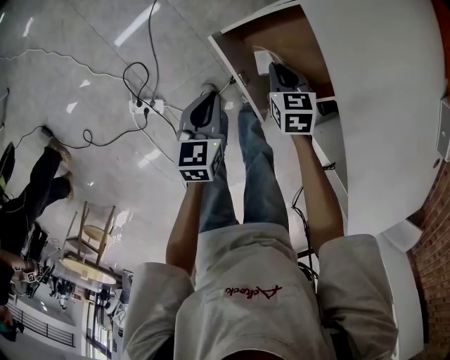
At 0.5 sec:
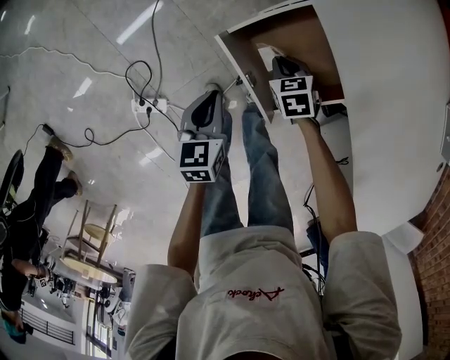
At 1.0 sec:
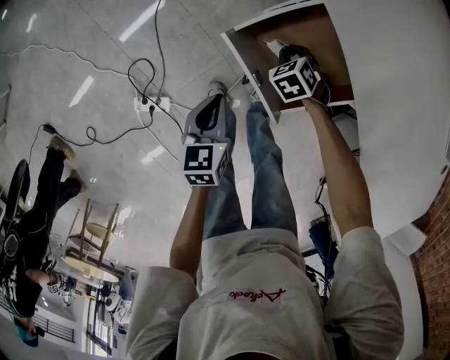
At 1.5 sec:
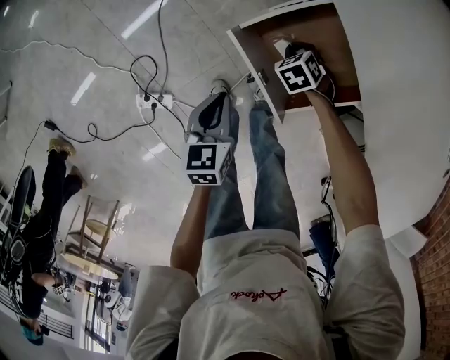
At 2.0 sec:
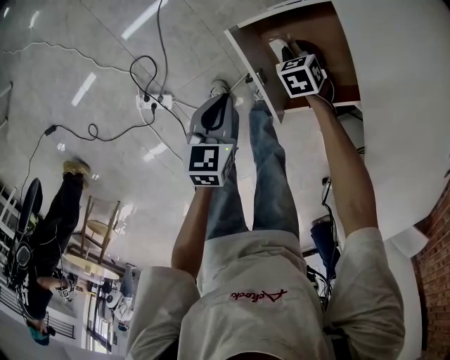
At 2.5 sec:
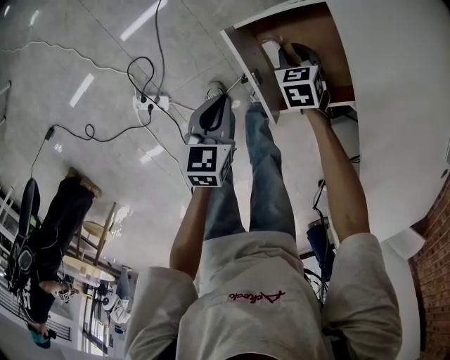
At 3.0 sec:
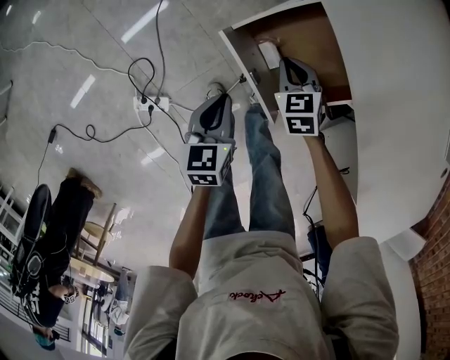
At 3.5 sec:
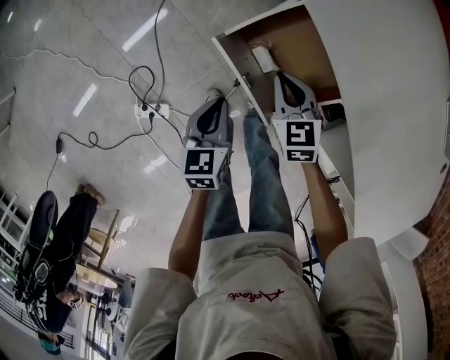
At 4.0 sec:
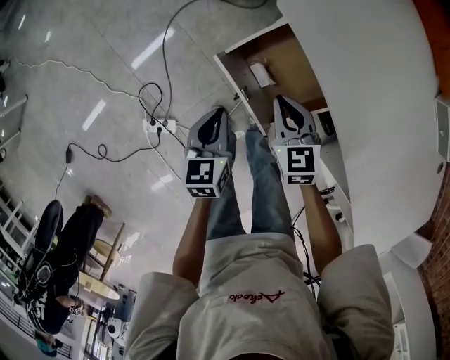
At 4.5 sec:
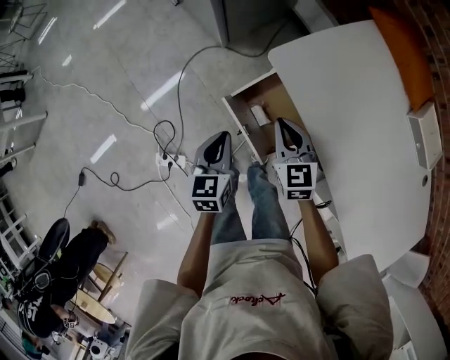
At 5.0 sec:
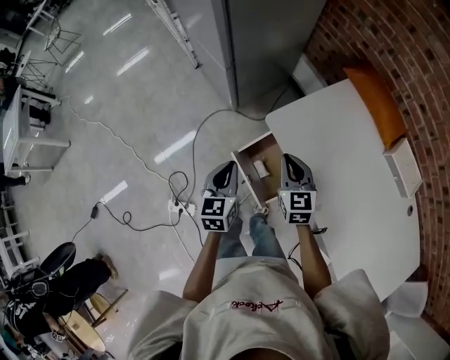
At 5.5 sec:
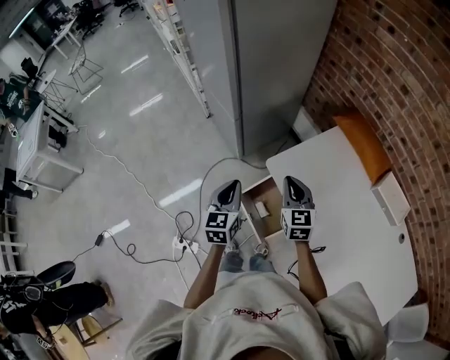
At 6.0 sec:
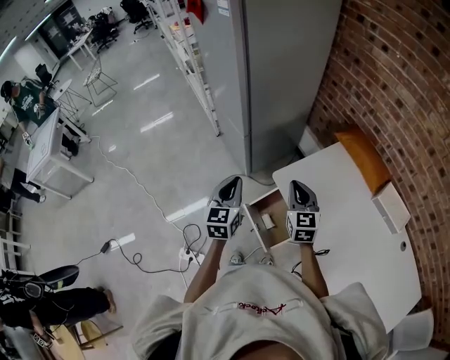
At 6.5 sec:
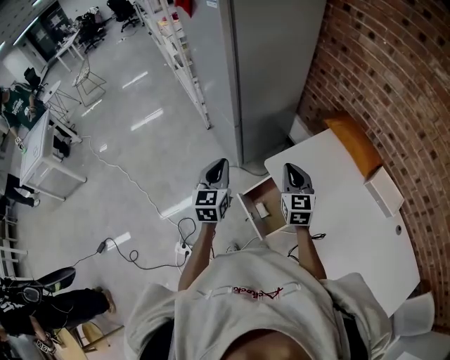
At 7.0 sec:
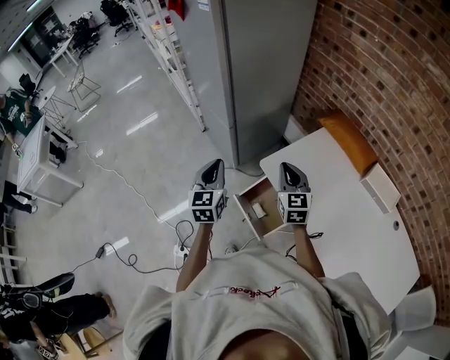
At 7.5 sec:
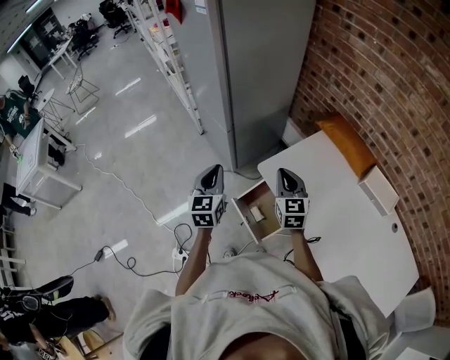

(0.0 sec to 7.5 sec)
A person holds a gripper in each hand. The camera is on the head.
0.0 sec - 2.0 sec: The right gripper is displaced downward by about 10 cm, changes its angle by approximately 30 degrees, and opens its fingers.
2.0 sec - 4.0 sec: The left gripper travels upward by approximately 10 cm. The right gripper goes about 20 cm upward, tilts its fingers roughly 30 degrees upward, and closes.
4.0 sec - 5.5 sec: The grippers both shift upward by some 30 cm. The right gripper rotates about 20 degrees. The left gripper turns by roughly 20 degrees.
5.5 sec - 7.5 sec: The two grippers go approximately 5 cm upward.

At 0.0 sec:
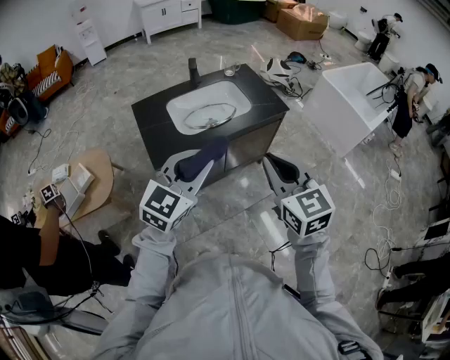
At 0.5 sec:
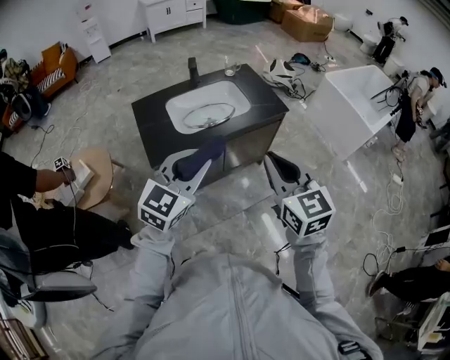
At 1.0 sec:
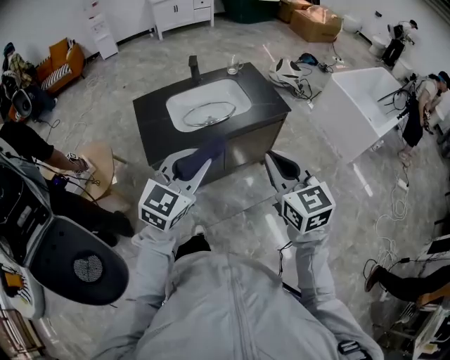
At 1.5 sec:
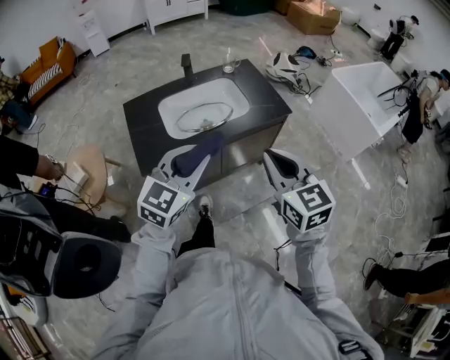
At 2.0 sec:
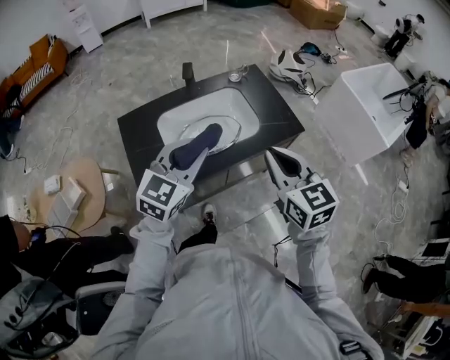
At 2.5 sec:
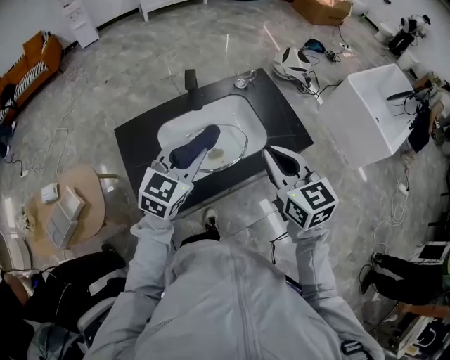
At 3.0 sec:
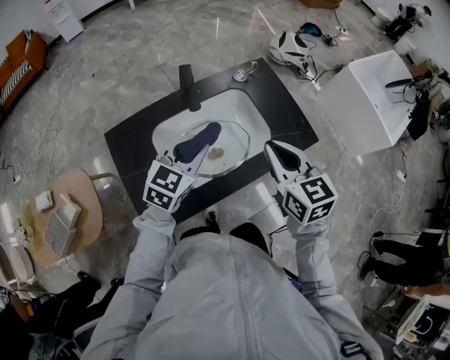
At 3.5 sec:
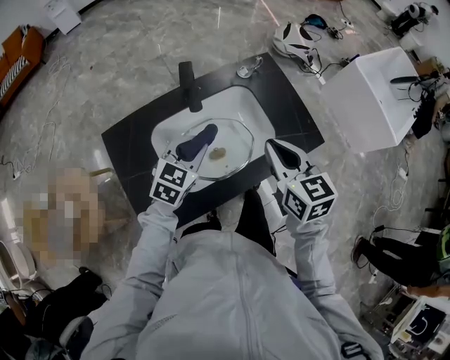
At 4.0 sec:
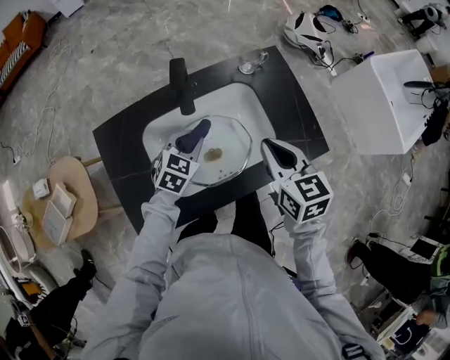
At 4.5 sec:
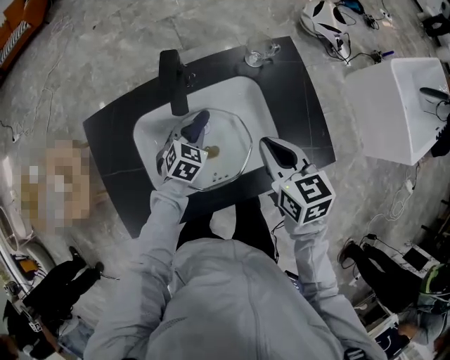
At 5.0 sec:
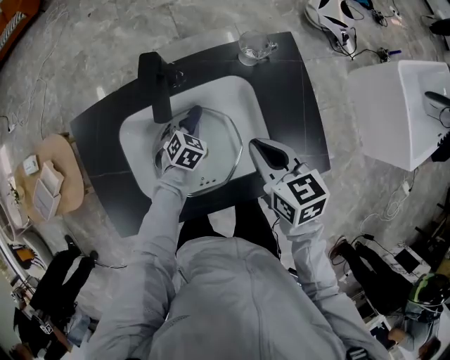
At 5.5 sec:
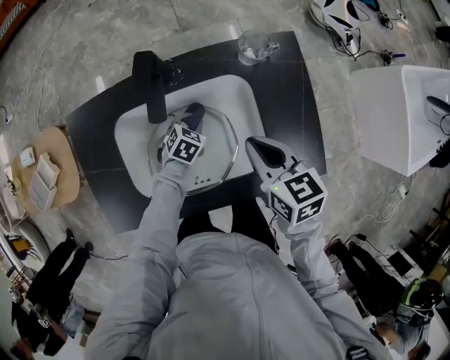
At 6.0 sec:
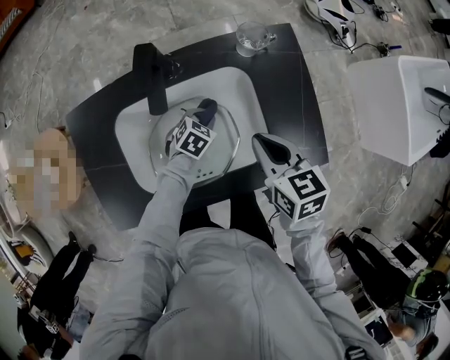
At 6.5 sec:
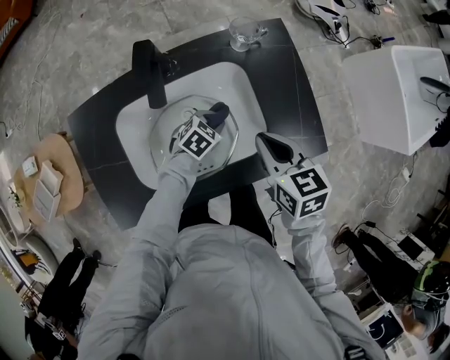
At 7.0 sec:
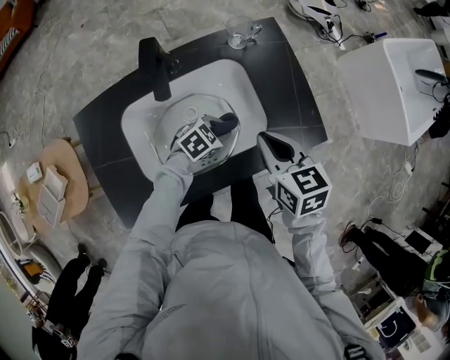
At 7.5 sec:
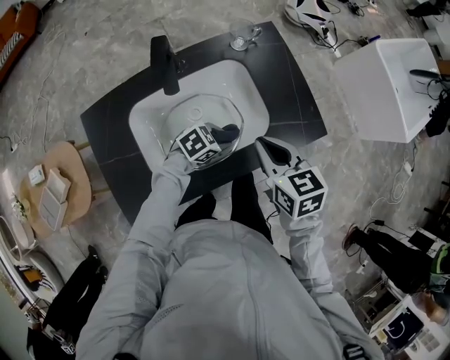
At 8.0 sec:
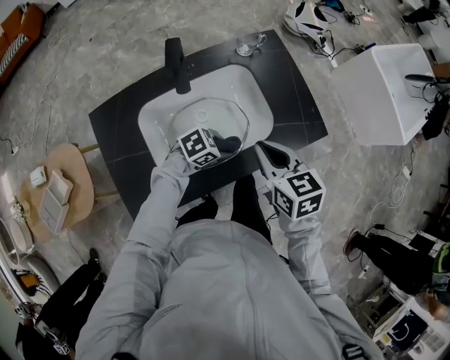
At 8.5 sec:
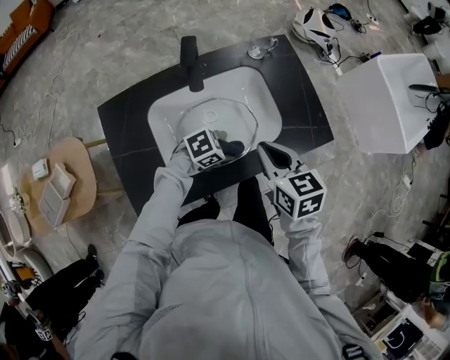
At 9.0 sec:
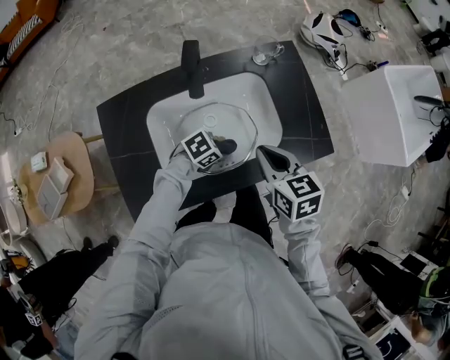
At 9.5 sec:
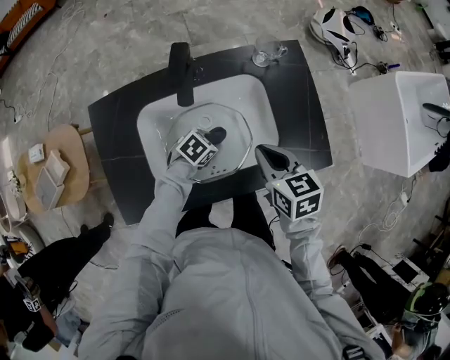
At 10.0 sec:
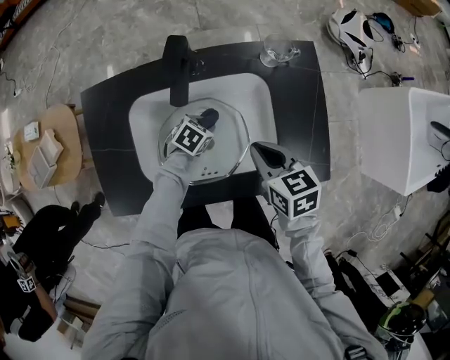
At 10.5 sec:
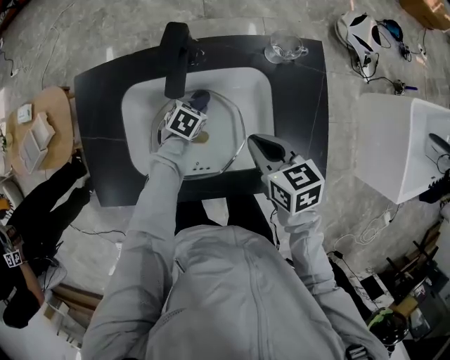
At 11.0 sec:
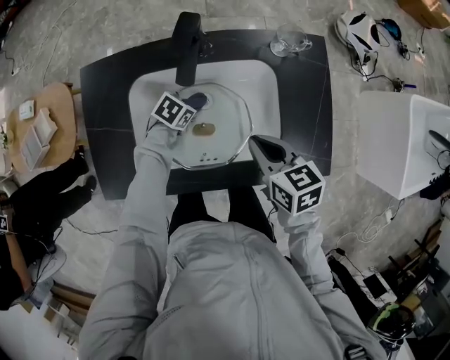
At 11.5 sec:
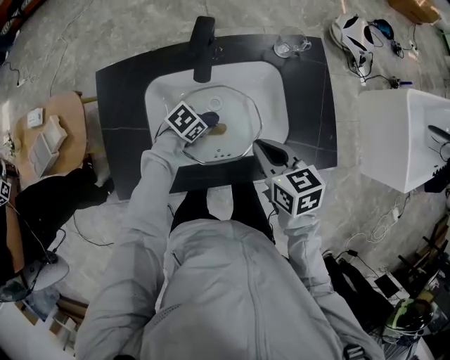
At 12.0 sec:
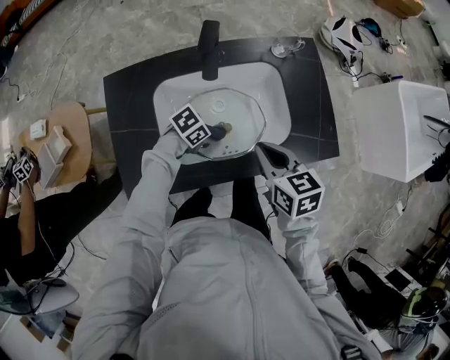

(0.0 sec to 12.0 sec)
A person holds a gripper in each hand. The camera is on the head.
0.0 sec - 2.0 sec: The two grippers go roughly 25 cm forward.
2.0 sec - 4.0 sec: The left gripper shifts approximately 35 cm downward and forward, and changes its angle by some 30 degrees. Meanwhile the right gripper moves forward and downward, about 25 cm.
4.0 sec - 6.0 sec: The left gripper is displaced downward and to the right by roughly 20 cm; the right gripper is displaced downward by some 10 cm.
6.0 sec - 8.0 sec: The left gripper moves roughly 20 cm, and turns by some 40 degrees. Meanwhile the right gripper moves some 10 cm.
8.0 sec - 10.0 sec: The right gripper moves about 10 cm, and rotates some 20 degrees, while the left gripper moves roughly 20 cm, and rotates about 50 degrees.
10.0 sec - 12.0 sec: The right gripper shifts by some 10 cm. Meanwhile the left gripper changes place by about 15 cm, and rotates approximately 30 degrees.

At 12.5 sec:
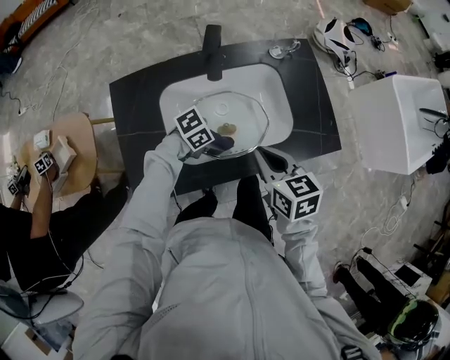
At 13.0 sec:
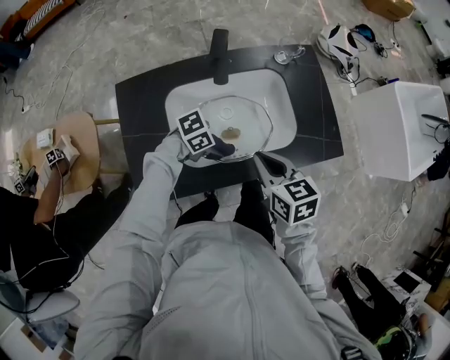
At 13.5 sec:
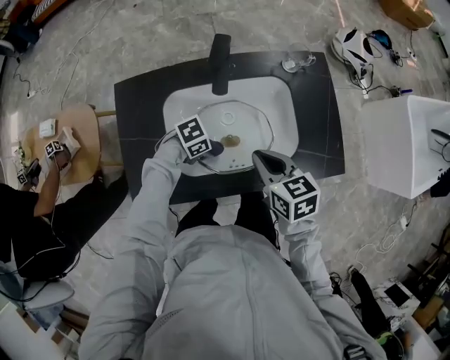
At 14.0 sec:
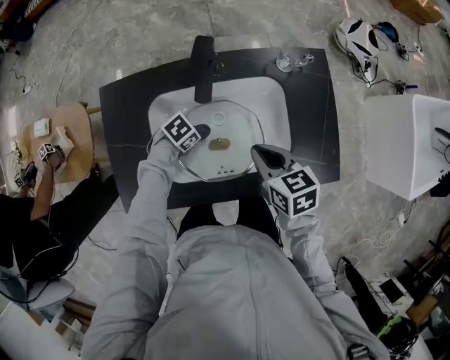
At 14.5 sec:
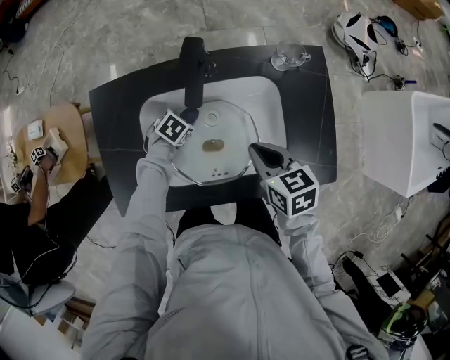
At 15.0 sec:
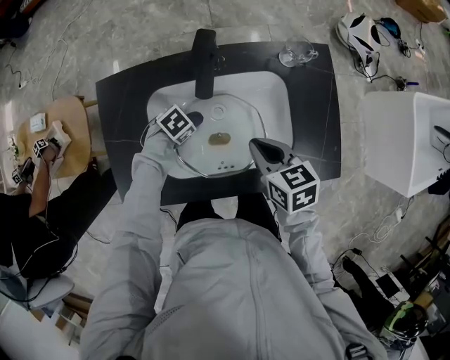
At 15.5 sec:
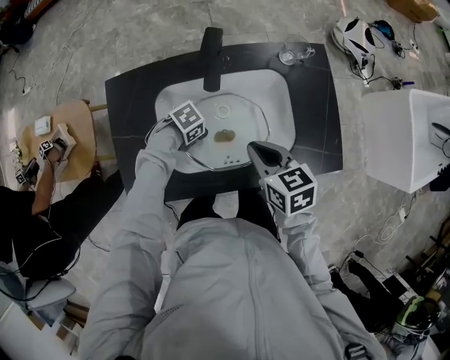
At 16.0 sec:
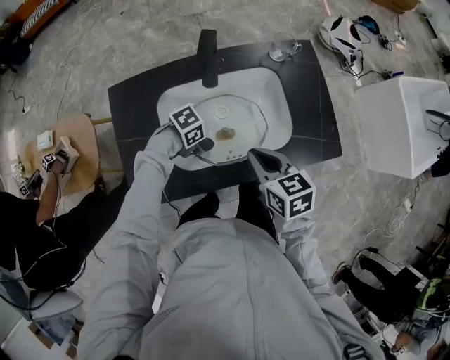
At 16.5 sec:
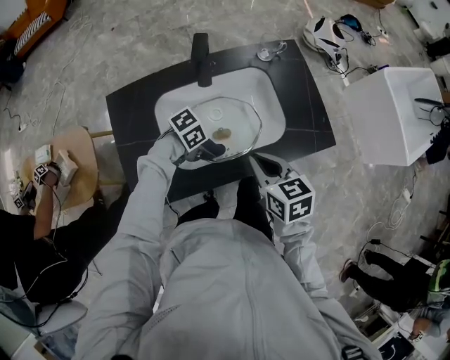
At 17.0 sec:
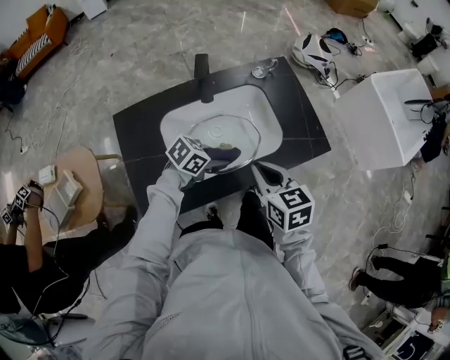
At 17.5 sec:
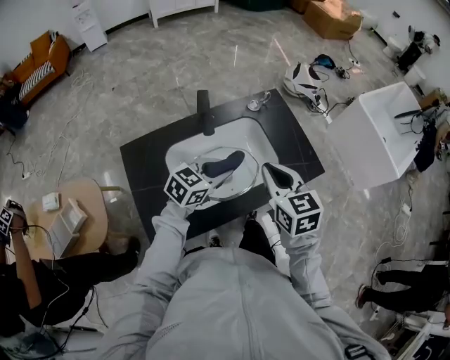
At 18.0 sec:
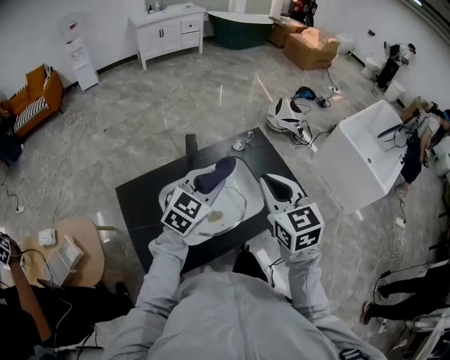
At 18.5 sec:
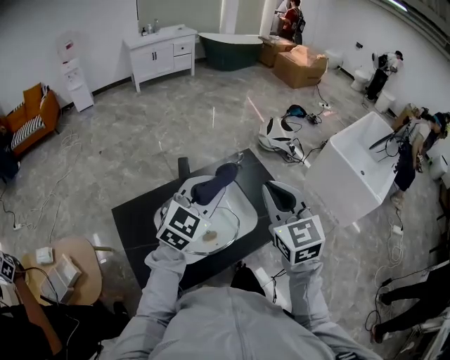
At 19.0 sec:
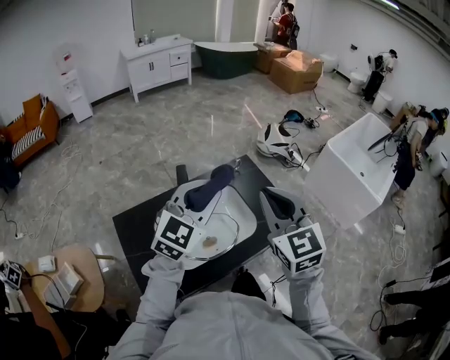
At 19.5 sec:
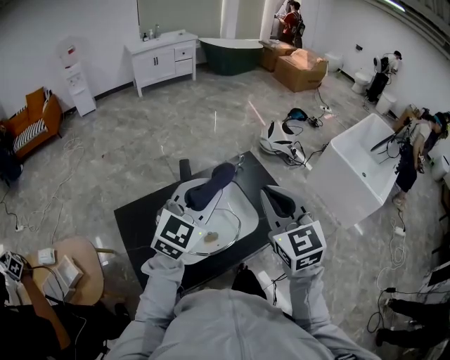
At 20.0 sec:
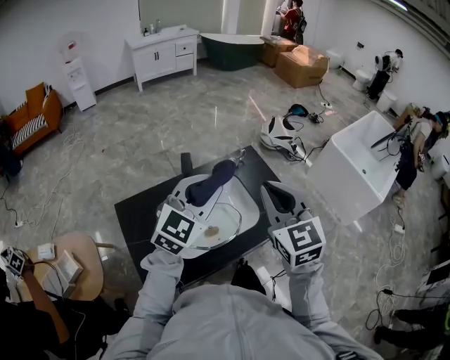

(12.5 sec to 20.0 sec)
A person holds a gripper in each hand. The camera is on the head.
12.5 sec - 14.5 sec: The right gripper moves roughly 10 cm. Meanwhile the left gripper moves some 20 cm, and swivels some 40 degrees.
14.5 sec - 16.5 sec: The right gripper shifts by some 15 cm, while the left gripper moves some 20 cm, and swivels roughly 40 degrees.
16.5 sec - 18.0 sec: Both grippers move upward, some 25 cm. The left gripper changes its angle by approximately 80 degrees. Meanwhile the right gripper changes its angle by about 30 degrees.
18.0 sec - 20.0 sec: The left gripper is displaced upward by roughly 10 cm; the right gripper goes roughly 5 cm upward.
